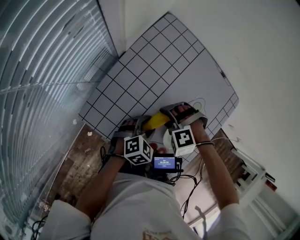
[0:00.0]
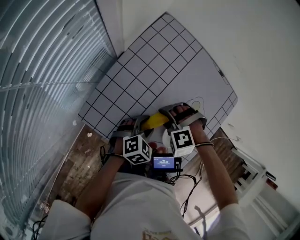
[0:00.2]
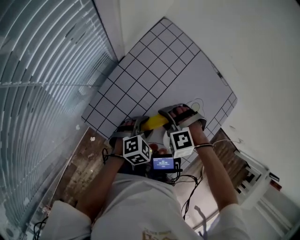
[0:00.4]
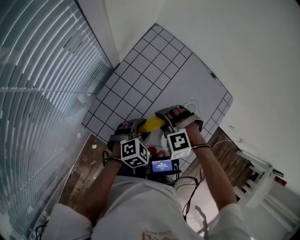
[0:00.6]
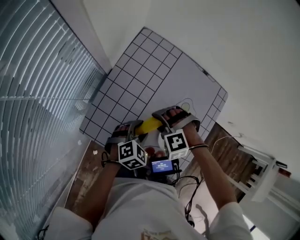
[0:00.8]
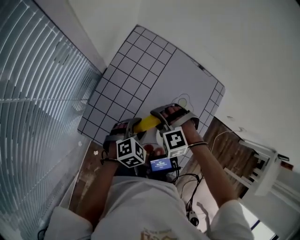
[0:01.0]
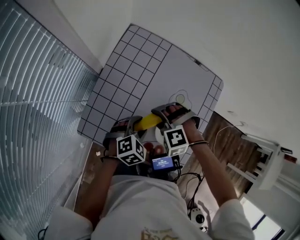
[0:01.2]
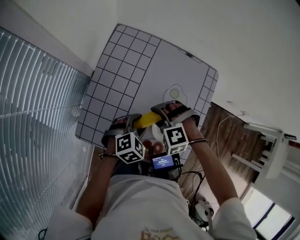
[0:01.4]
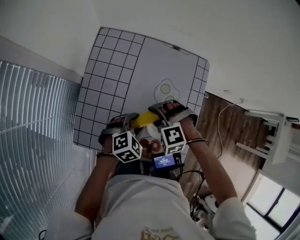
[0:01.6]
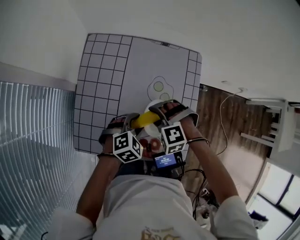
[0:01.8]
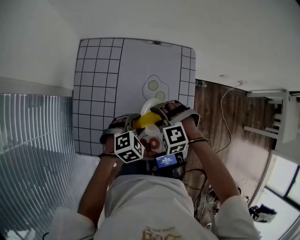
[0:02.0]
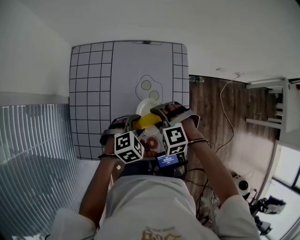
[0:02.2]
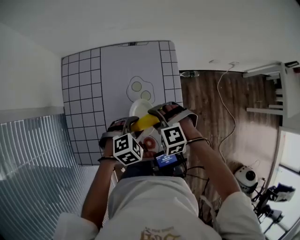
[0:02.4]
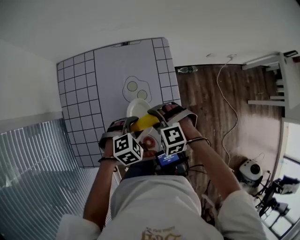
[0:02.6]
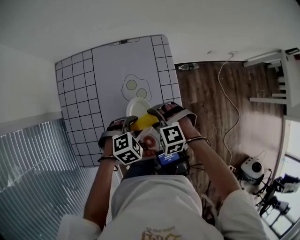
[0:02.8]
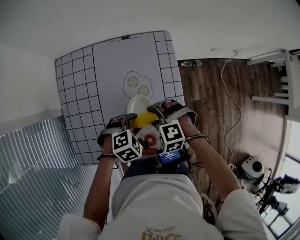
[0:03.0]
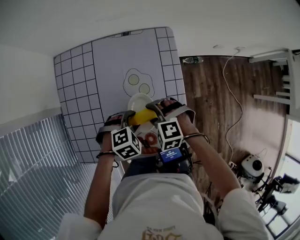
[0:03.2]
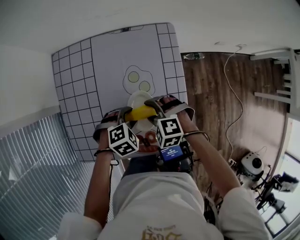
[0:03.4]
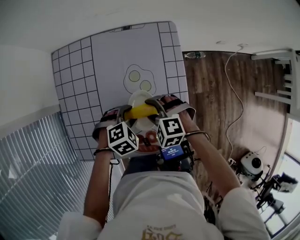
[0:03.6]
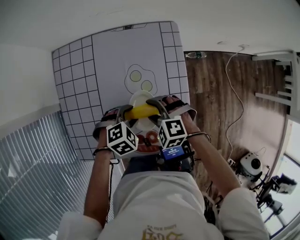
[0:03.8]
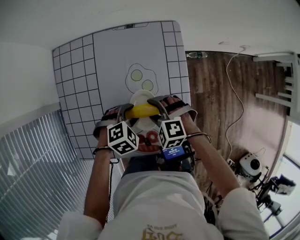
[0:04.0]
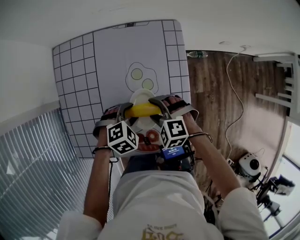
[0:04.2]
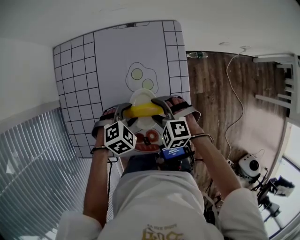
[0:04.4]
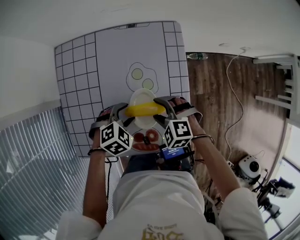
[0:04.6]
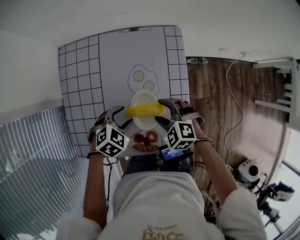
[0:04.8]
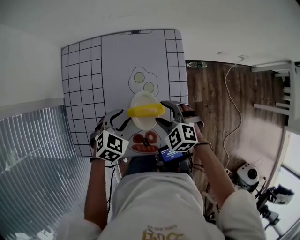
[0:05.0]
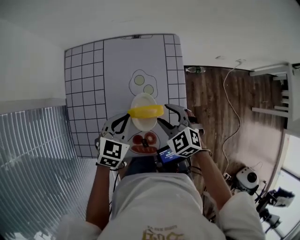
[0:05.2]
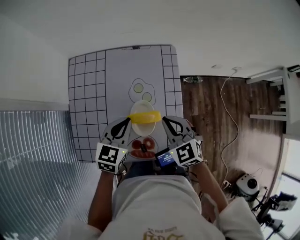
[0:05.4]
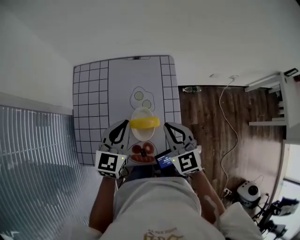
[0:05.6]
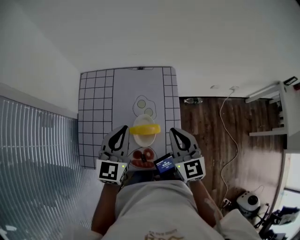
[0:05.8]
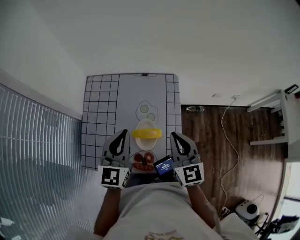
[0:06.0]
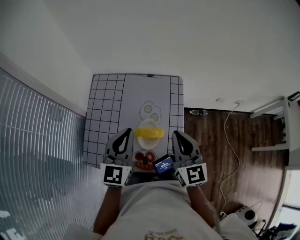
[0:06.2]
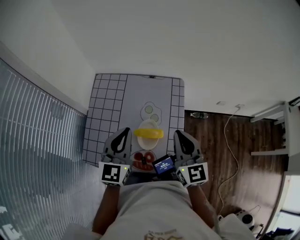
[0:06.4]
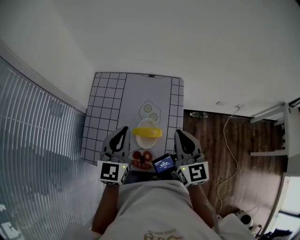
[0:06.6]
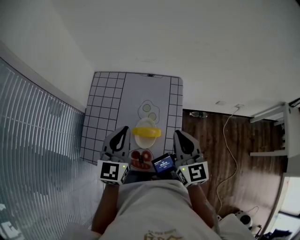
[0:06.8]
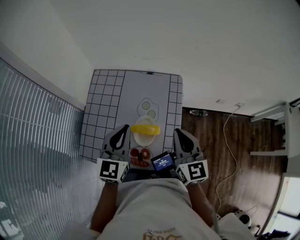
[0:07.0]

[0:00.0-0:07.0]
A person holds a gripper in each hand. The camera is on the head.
0:00.0 to 0:01.4: The left gripper swivels some 20 degrees. The right gripper moves some 5 cm, and swivels roughly 20 degrees.
0:01.4 to 0:02.8: The grippers both shift to the right by approximately 10 cm. The left gripper rotates some 30 degrees. Meanwhile the right gripper changes its angle by about 30 degrees.
0:02.8 to 0:04.2: The left gripper moves about 5 cm.
0:04.2 to 0:05.6: The grippers both shift upward by roughly 20 cm. The left gripper tips its fingers upward by some 50 degrees, and closes. The right gripper tips its fingers upward by some 30 degrees, and closes its fingers.
0:05.6 to 0:07.0: The grippers both shift upward by approximately 10 cm. The right gripper changes its angle by roughly 20 degrees.

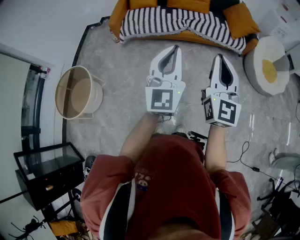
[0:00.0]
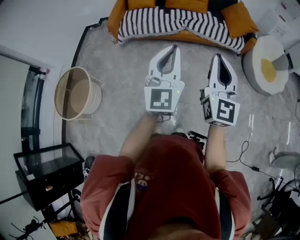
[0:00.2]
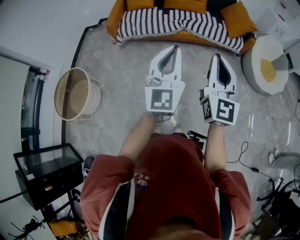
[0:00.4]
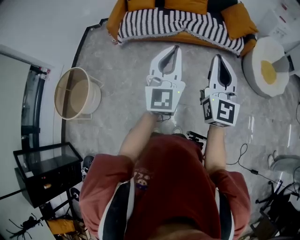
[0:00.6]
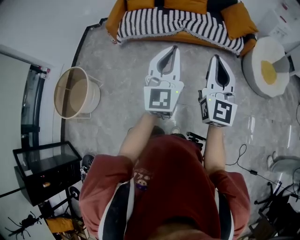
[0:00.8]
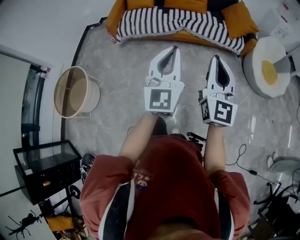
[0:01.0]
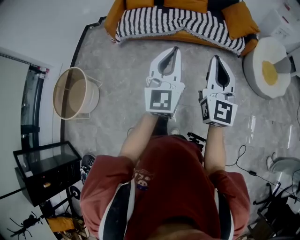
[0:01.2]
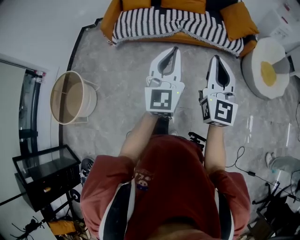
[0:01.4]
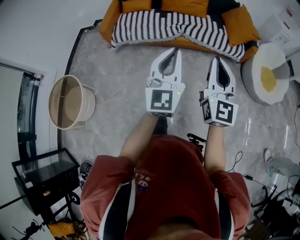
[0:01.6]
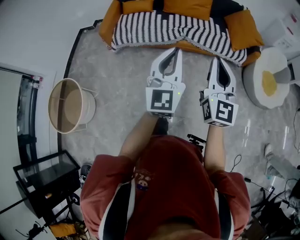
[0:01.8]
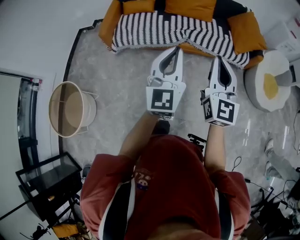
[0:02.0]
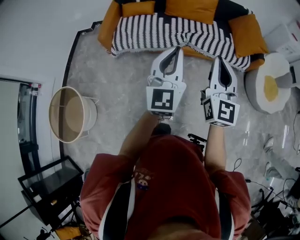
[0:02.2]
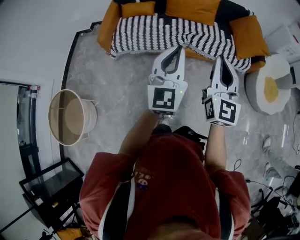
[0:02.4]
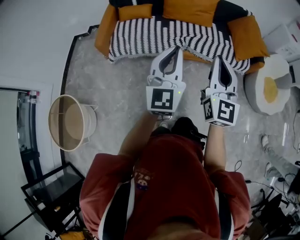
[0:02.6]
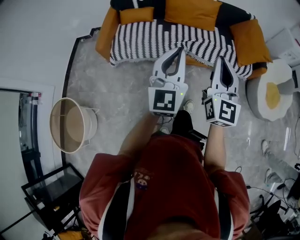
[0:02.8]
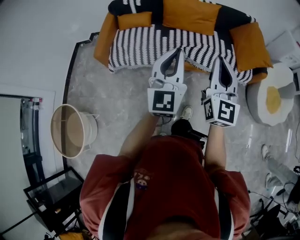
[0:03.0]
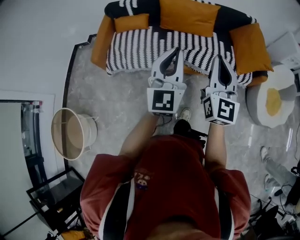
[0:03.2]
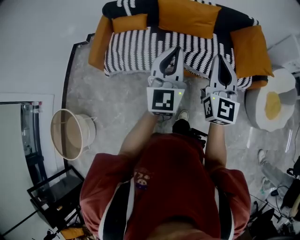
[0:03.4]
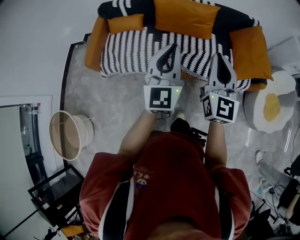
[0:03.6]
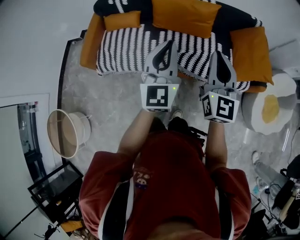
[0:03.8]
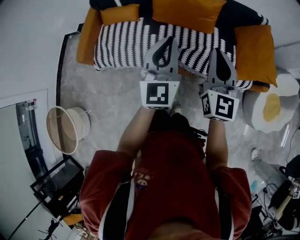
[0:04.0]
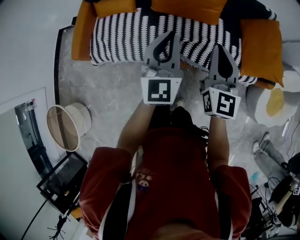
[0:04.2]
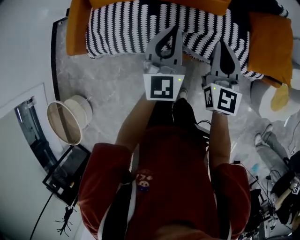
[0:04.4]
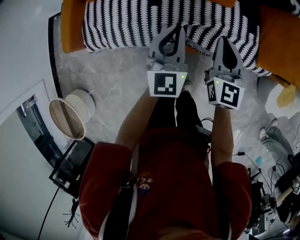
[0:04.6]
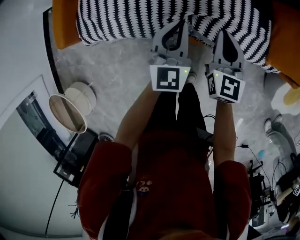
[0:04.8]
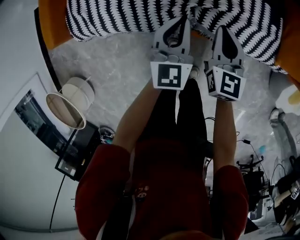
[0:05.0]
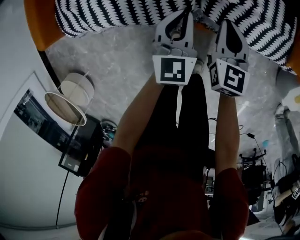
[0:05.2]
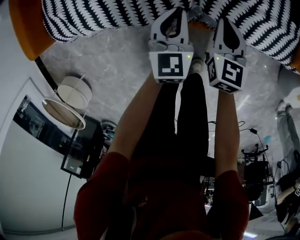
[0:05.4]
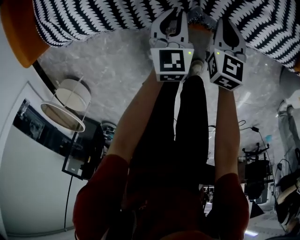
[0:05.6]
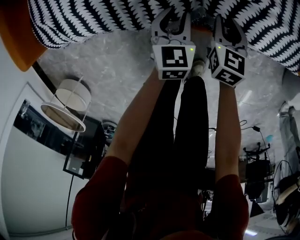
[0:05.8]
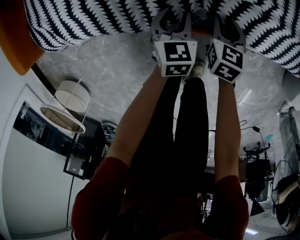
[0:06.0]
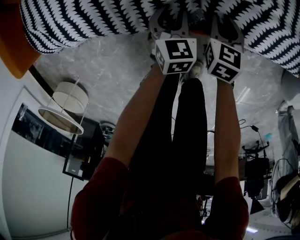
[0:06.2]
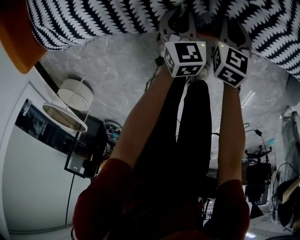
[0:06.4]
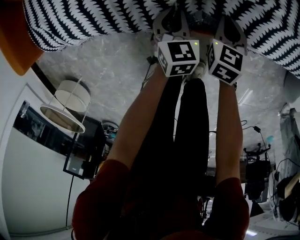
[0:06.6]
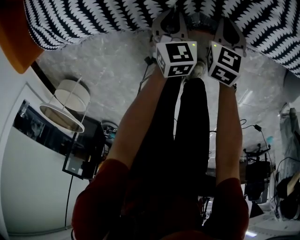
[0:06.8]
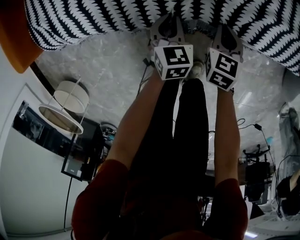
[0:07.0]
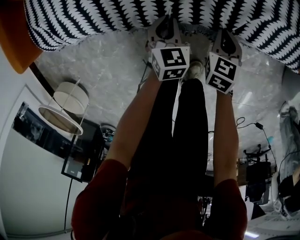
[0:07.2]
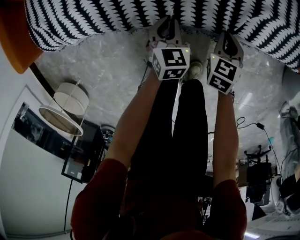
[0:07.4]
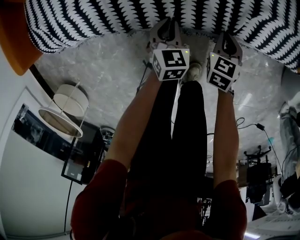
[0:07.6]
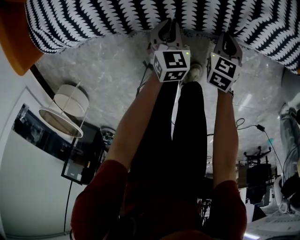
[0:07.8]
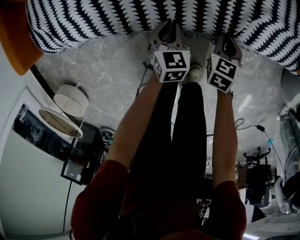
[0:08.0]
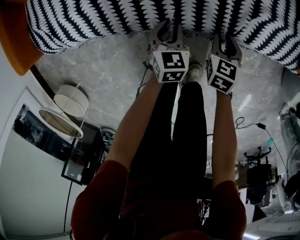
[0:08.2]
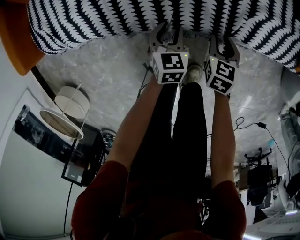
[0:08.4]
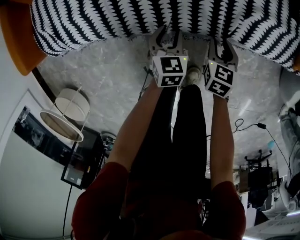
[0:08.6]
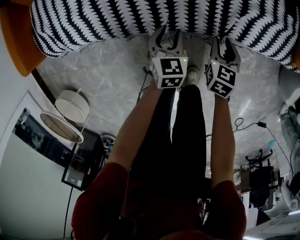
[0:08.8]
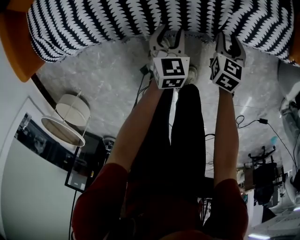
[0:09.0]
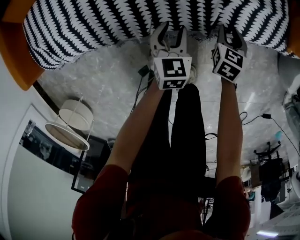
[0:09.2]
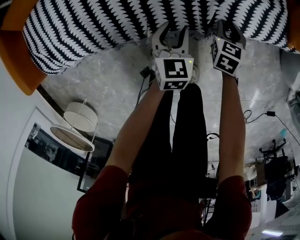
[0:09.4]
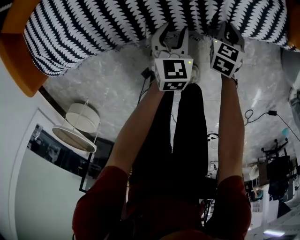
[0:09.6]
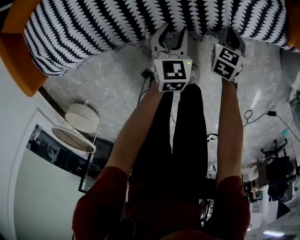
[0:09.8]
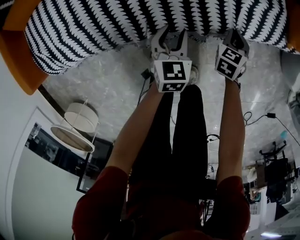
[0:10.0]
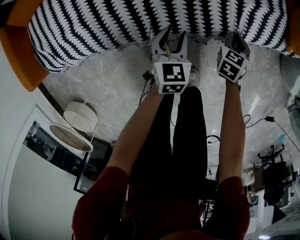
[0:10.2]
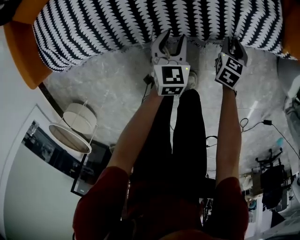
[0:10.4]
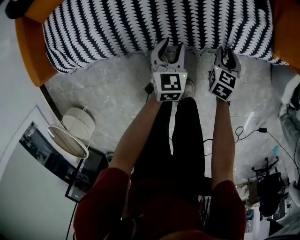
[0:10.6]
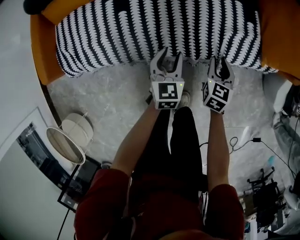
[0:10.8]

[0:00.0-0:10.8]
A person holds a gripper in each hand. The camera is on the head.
0:00.0 to 0:01.6: The grippers both shift forward by some 15 cm.
0:01.6 to 0:03.0: The grippers both shift forward by roughly 35 cm.
0:03.0 to 0:04.6: The pair of grippers is taken forward, some 40 cm. The grippers both shift downward by roughly 25 cm. The left gripper turns by about 20 degrees. The right gripper changes its angle by roughly 20 degrees.
0:04.6 to 0:06.2: Both grippers move downward, roughly 50 cm. The right gripper tips its fingers downward by approximately 40 degrees, and opens its fingers, while the left gripper tips its fingers downward by approximately 40 degrees, and opens.
0:06.2 to 0:07.8: The right gripper heads downward, backward and to the right, covering some 15 cm, and closes up, while the left gripper travels downward and backward by roughly 10 cm, and closes.
0:07.8 to 0:09.2: The right gripper heads to the right, covering about 5 cm, reaches about 10 cm upward, then returns, and opens its fingers; the left gripper shifts approximately 10 cm to the right and upward, and opens up.
0:09.2 to 0:10.8: Both grippers travel together upward, roughly 15 cm. The right gripper closes, then opens again.

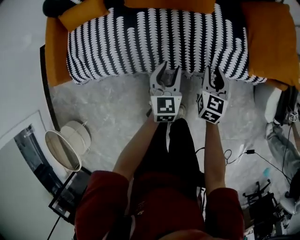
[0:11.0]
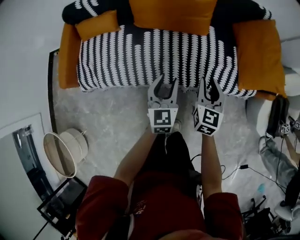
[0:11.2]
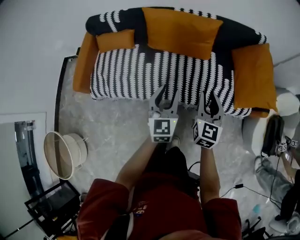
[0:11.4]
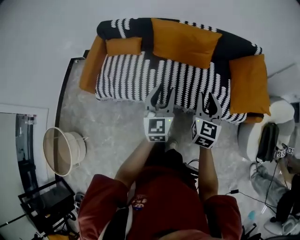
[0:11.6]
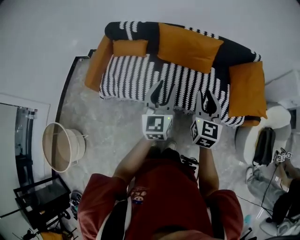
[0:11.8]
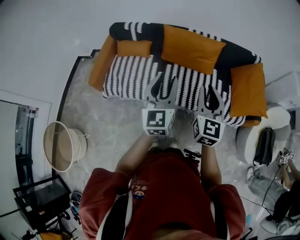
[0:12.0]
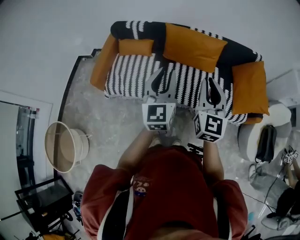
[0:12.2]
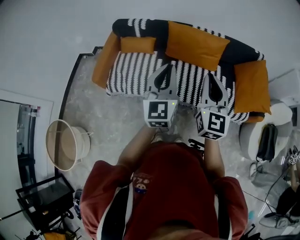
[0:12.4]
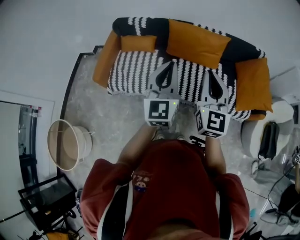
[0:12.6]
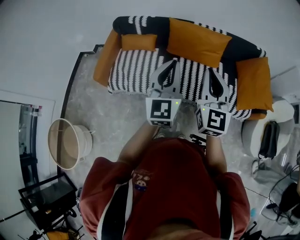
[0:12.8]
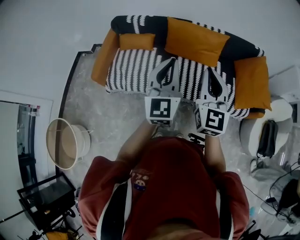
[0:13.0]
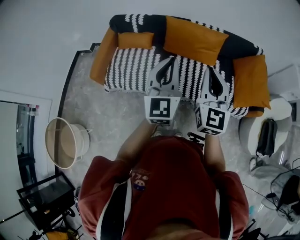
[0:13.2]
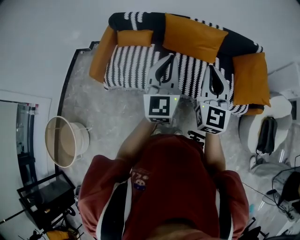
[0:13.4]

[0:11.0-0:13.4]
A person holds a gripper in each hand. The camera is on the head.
0:11.0 to 0:12.2: Both grippers move upward, roughly 50 cm. The right gripper tilts its fingers roughly 30 degrees upward. The left gripper swivels roughly 30 degrees.
0:12.2 to 0:13.4: The left gripper closes.

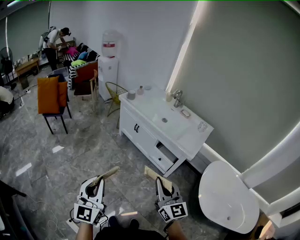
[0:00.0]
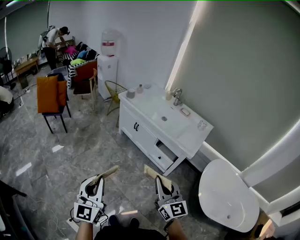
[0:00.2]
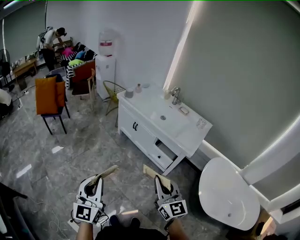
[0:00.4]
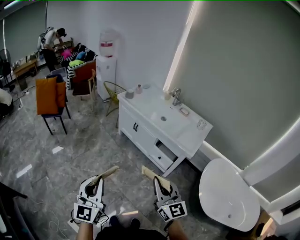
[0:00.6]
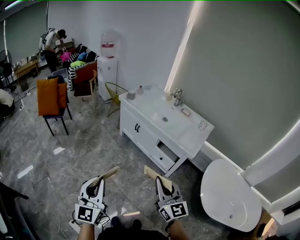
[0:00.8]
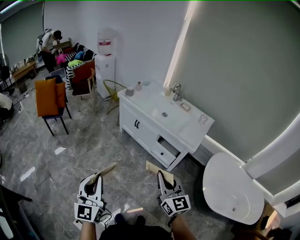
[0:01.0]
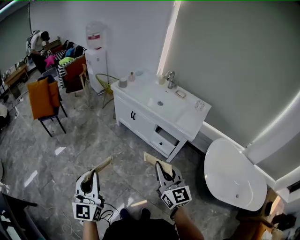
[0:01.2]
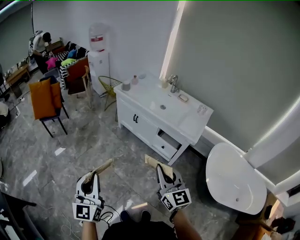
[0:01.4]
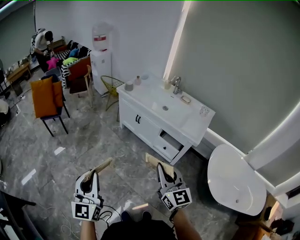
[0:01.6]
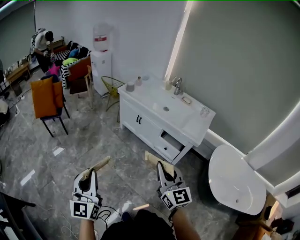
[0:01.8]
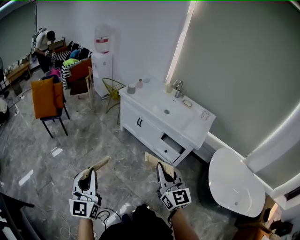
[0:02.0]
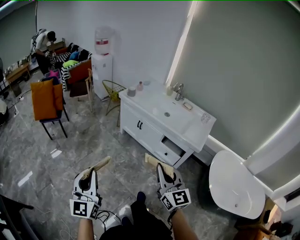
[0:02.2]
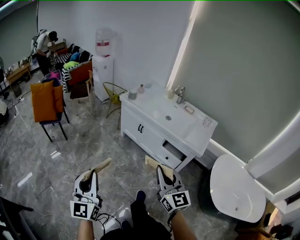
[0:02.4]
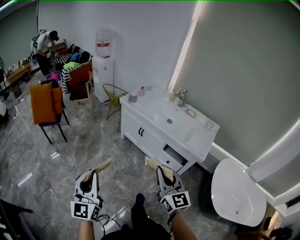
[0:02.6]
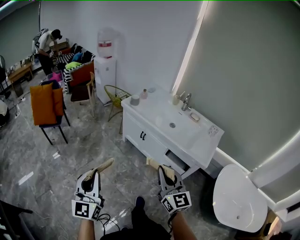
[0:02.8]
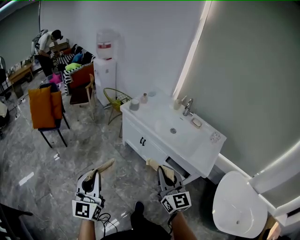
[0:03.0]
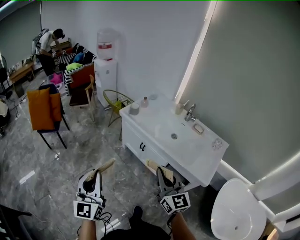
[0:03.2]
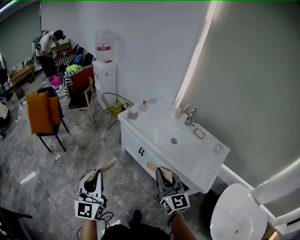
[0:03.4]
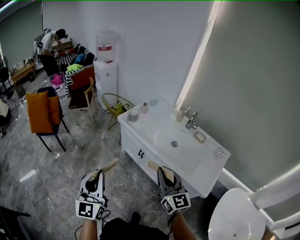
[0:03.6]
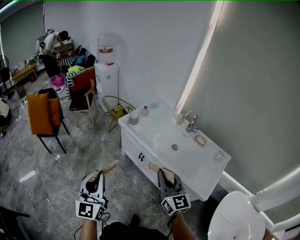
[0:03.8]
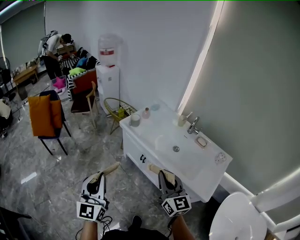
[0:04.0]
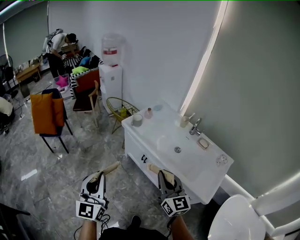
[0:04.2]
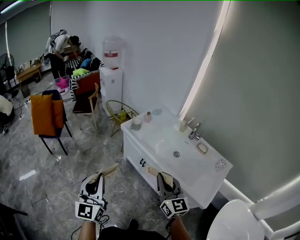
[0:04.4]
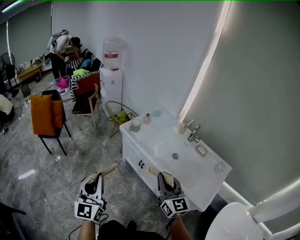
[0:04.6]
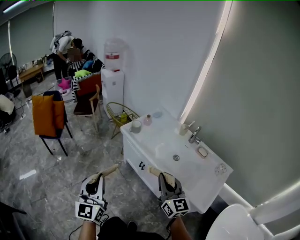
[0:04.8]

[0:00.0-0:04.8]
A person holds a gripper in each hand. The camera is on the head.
0:00.0 to 0:01.6: The left gripper travels to the left by about 10 cm. The right gripper heads to the left, covering roughly 5 cm.
0:01.6 to 0:03.2: The grippers both shift forward by roughly 35 cm.
0:03.2 to 0:04.8: Both grippers travel together forward and to the right, some 15 cm.
